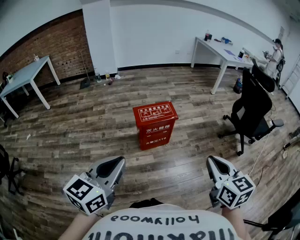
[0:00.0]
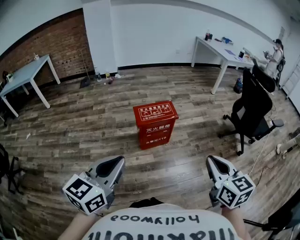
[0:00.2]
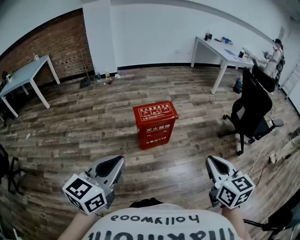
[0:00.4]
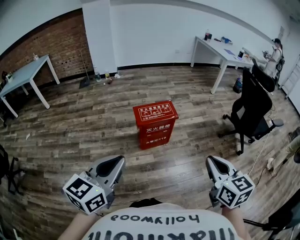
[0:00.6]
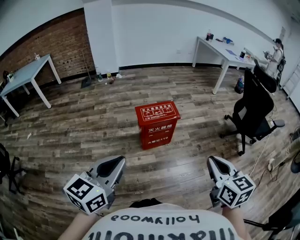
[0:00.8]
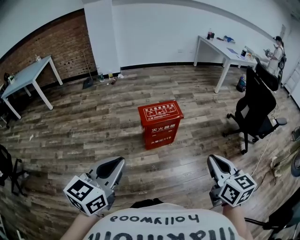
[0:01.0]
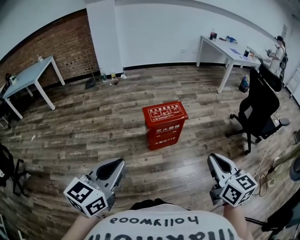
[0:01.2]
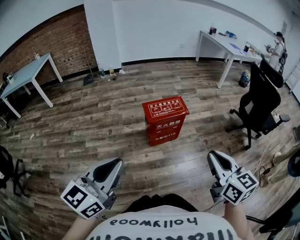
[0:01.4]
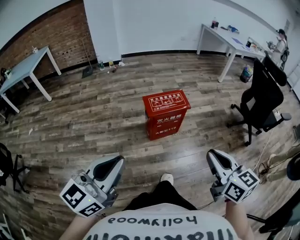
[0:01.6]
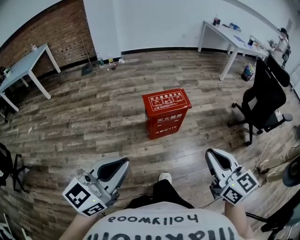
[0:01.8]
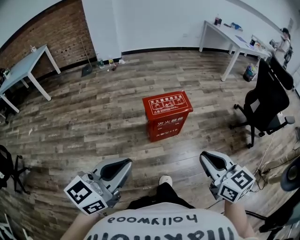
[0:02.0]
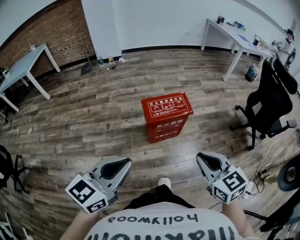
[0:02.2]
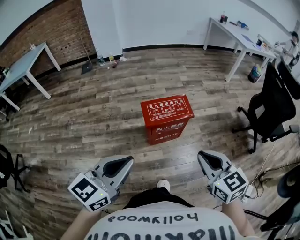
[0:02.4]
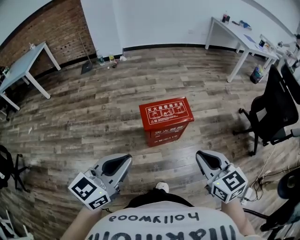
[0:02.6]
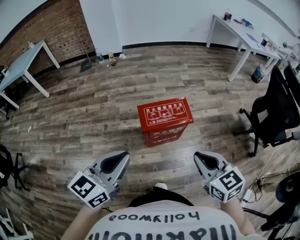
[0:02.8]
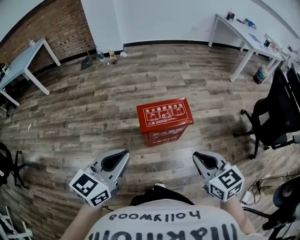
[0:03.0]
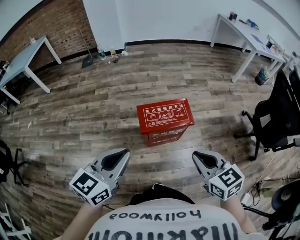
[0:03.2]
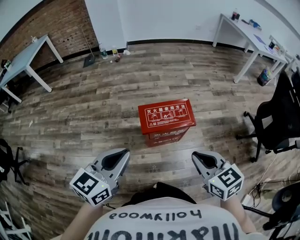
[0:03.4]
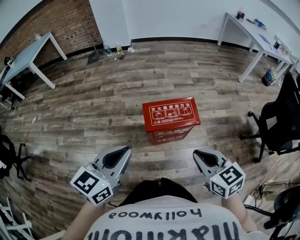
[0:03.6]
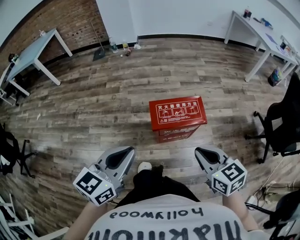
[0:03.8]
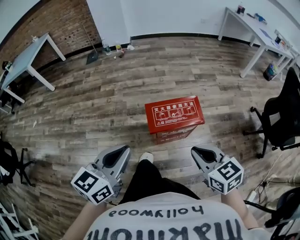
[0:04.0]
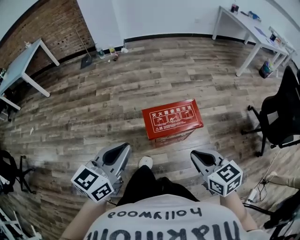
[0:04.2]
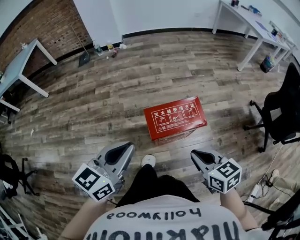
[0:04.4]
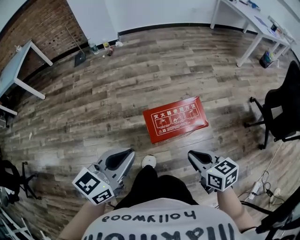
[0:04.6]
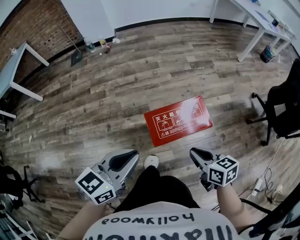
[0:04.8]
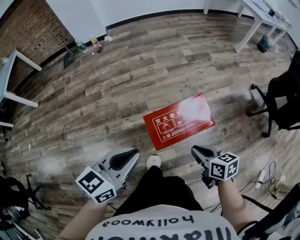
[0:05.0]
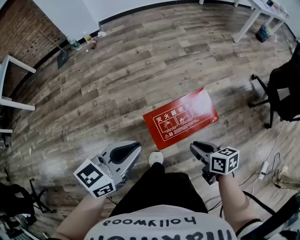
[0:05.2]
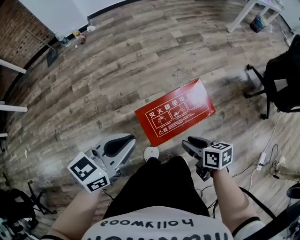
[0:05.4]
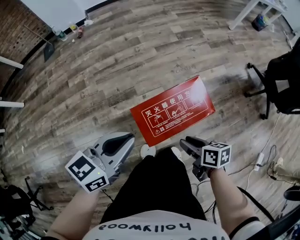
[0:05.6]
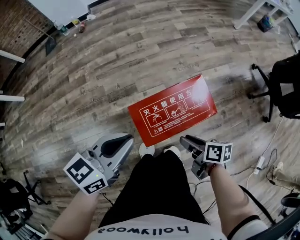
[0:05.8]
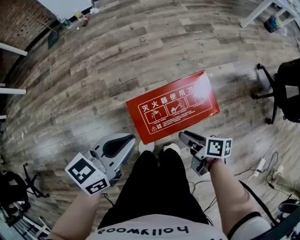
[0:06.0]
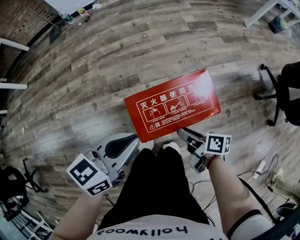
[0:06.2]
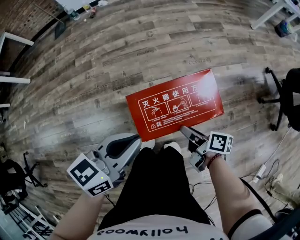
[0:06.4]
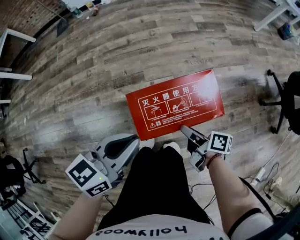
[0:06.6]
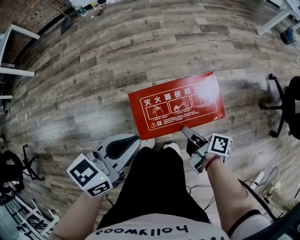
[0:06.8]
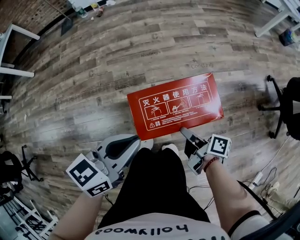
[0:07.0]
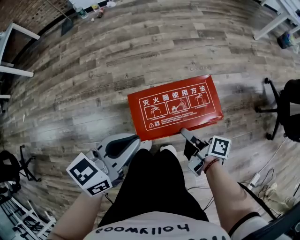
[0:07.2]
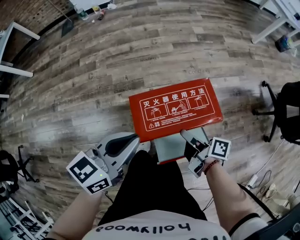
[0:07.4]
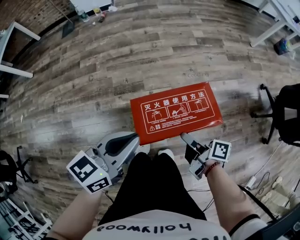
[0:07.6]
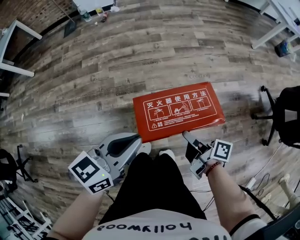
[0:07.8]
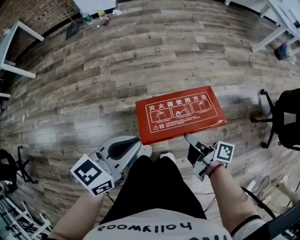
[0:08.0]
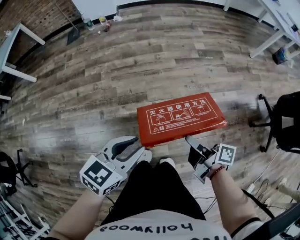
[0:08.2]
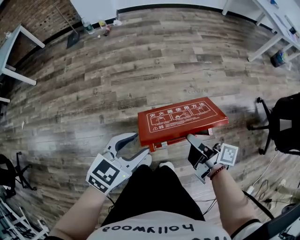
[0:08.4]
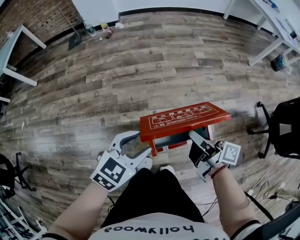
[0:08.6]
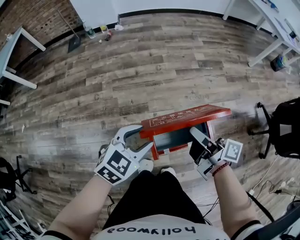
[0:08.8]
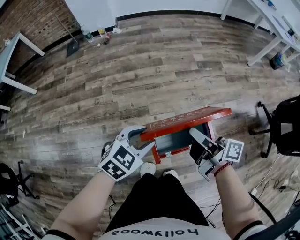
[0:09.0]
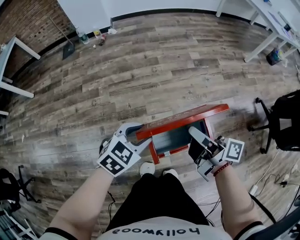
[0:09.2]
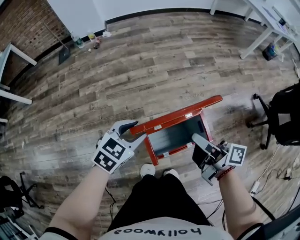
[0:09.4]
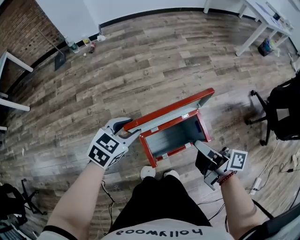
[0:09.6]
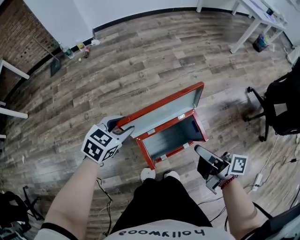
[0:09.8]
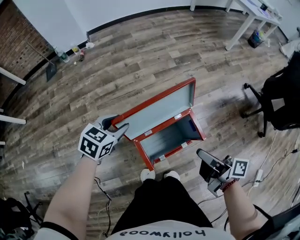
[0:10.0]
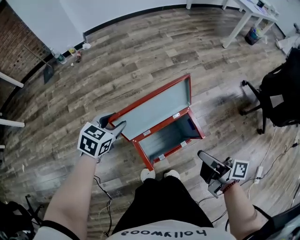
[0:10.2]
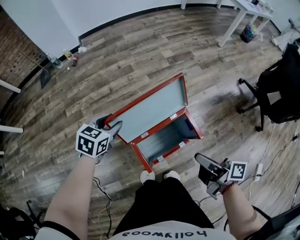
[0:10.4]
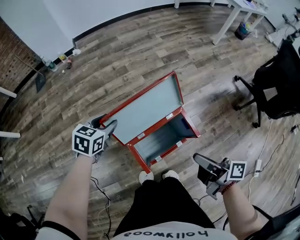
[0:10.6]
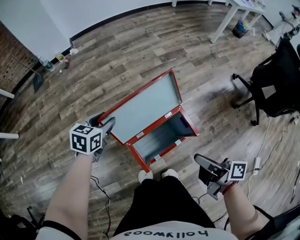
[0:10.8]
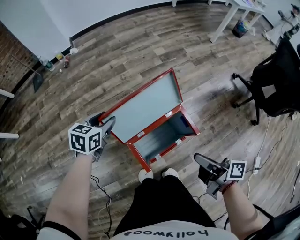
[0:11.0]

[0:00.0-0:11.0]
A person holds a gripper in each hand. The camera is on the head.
0:00.0 to 0:01.6: The two grippers go some 10 cm to the left.
0:01.6 to 0:03.2: The grippers both shift forward by some 25 cm. The right gripper turns by some 20 degrees.
0:03.2 to 0:04.8: The right gripper moves downward and forward, about 20 cm, and turns by some 30 degrees; the left gripper moves forward and downward, roughly 15 cm.
0:04.8 to 0:06.2: The left gripper is displaced downward, forward and to the right by some 15 cm. The right gripper goes some 20 cm downward and forward, rolls clockwise, seen from behind, by some 40 degrees, and opens up.
0:06.2 to 0:07.8: The right gripper is displaced upward by some 5 cm.
0:07.8 to 0:09.4: The right gripper is displaced upward and forward by approximately 20 cm, and rotates roughly 20 degrees. Meanwhile the left gripper goes approximately 15 cm forward and downward, swivels about 30 degrees, and opens.
0:09.4 to 0:11.0: The left gripper heads forward, covering about 10 cm, while the right gripper moves backward and to the right, approximately 10 cm.

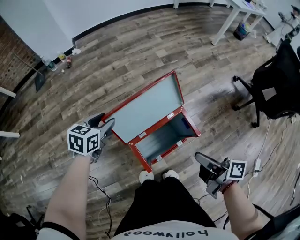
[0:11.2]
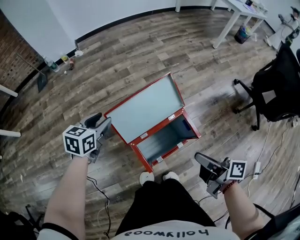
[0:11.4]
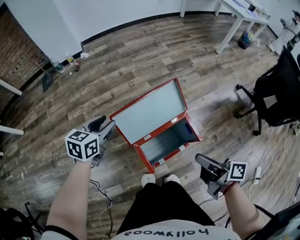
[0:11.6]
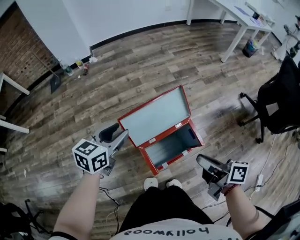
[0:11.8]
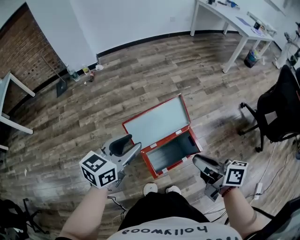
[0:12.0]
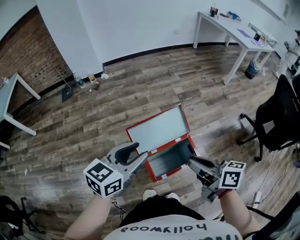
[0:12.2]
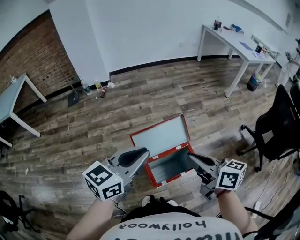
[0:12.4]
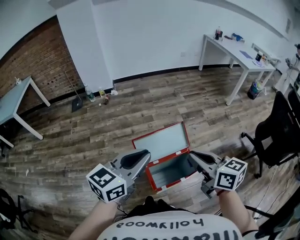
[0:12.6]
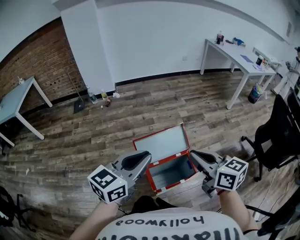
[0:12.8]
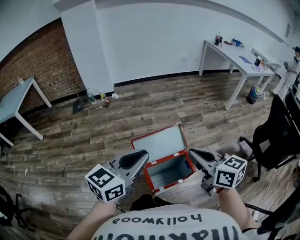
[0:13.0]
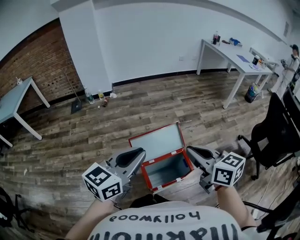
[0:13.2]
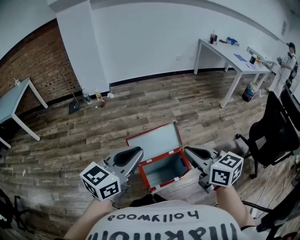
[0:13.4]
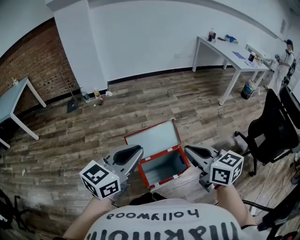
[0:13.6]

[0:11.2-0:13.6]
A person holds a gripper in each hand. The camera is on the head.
0:11.2 to 0:12.4: The left gripper shifts roughly 35 cm upward and backward, tilts its fingers about 30 degrees upward, and closes. The right gripper travels upward by approximately 20 cm, and twists approximately 40 degrees counterclockwise, seen from behind.
0:12.4 to 0:13.6: The left gripper shifts by roughly 5 cm; the right gripper heads upward, covering roughly 5 cm, and swivels some 20 degrees.

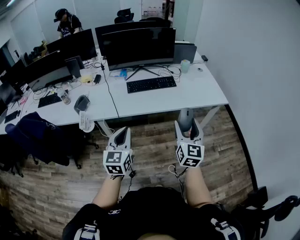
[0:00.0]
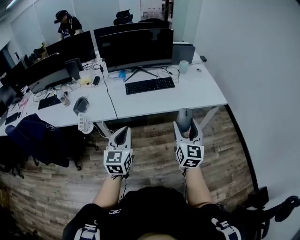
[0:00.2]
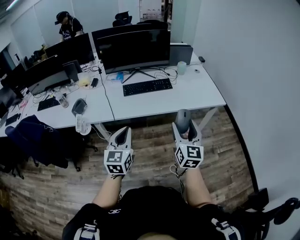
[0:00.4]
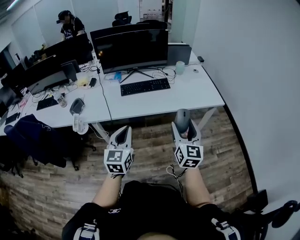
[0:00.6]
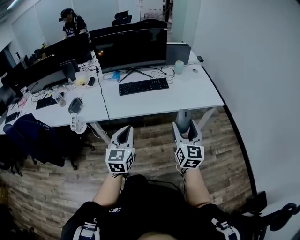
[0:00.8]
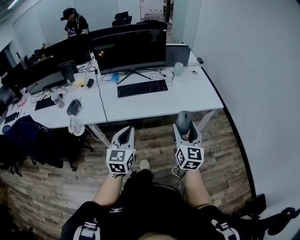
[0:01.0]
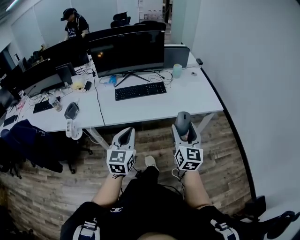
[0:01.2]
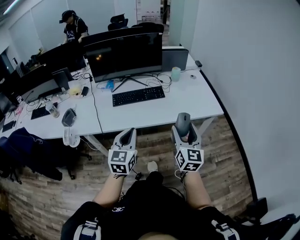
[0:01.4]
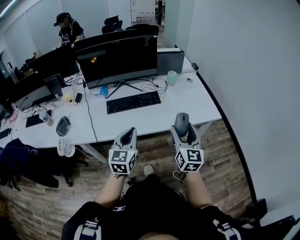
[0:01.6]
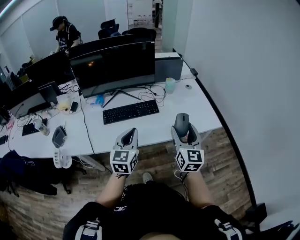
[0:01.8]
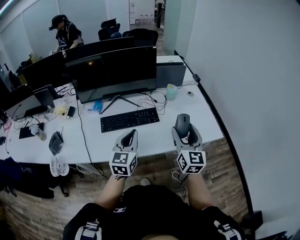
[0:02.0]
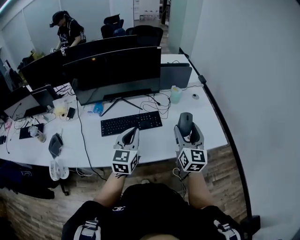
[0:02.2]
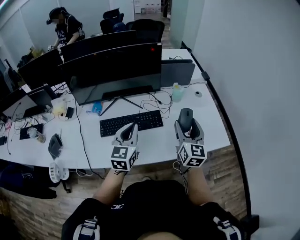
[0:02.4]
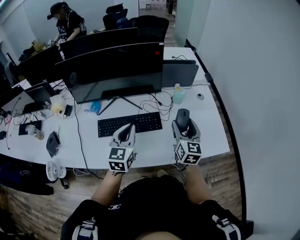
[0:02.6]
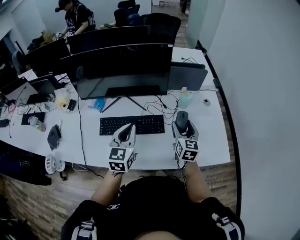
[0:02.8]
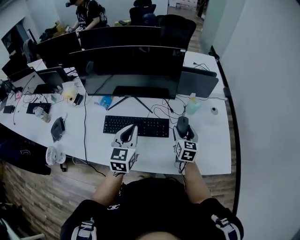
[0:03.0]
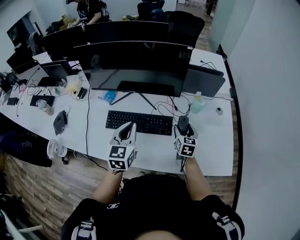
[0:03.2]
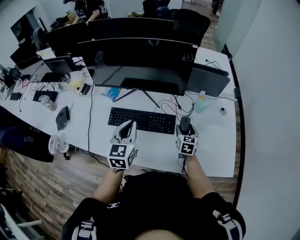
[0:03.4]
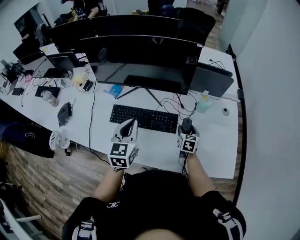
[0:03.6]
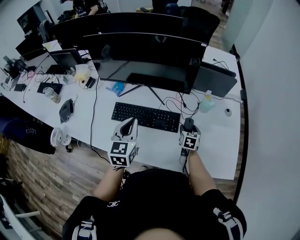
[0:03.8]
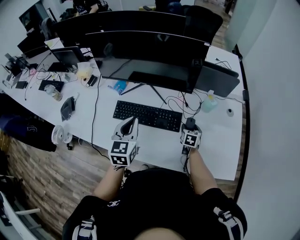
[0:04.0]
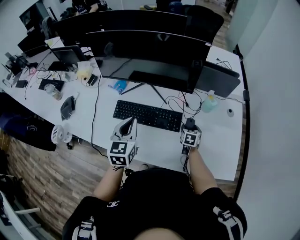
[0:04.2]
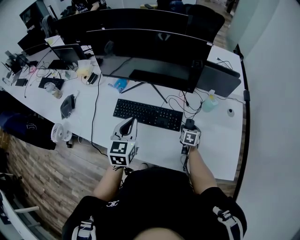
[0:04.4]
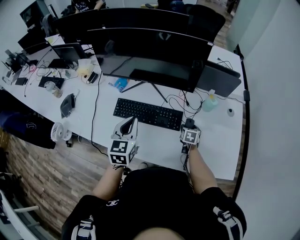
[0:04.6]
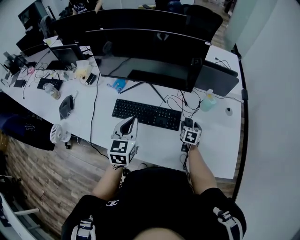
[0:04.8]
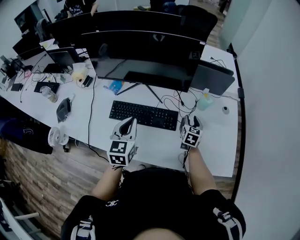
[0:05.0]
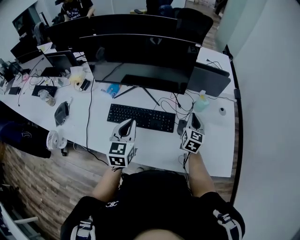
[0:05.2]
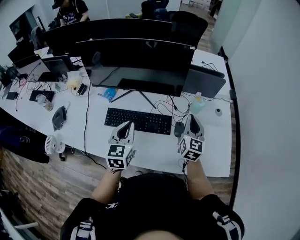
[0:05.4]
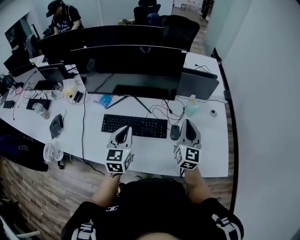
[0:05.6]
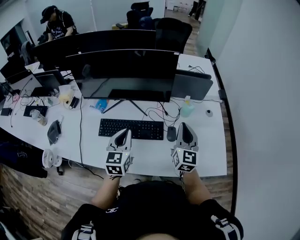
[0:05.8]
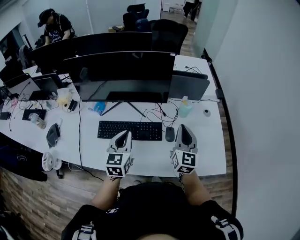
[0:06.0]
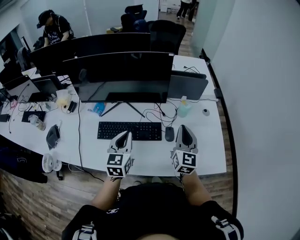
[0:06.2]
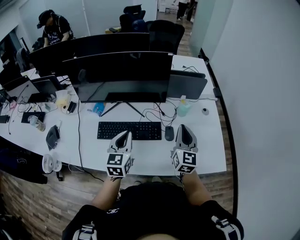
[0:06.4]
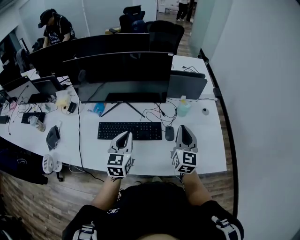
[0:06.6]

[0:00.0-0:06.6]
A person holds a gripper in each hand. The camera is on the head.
0:00.0 to 0:01.6: The grippers both shift forward and to the right by about 25 cm.
0:01.6 to 0:03.2: Both grippers travel together forward, roughly 40 cm. The left gripper changes its angle by roughly 20 degrees, while the right gripper changes its angle by some 30 degrees.
0:03.2 to 0:05.0: The right gripper reaches about 15 cm downward, then returns.
0:05.0 to 0:06.6: The right gripper goes some 25 cm upward and backward, rotates about 30 degrees, and closes.

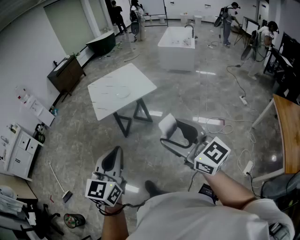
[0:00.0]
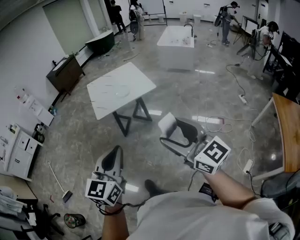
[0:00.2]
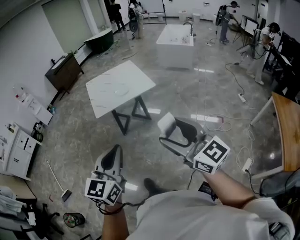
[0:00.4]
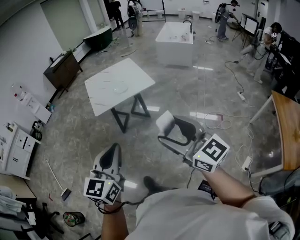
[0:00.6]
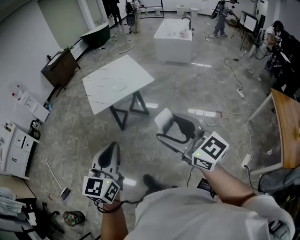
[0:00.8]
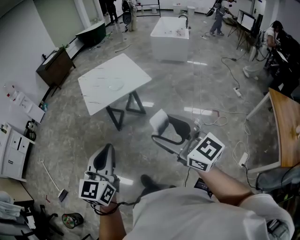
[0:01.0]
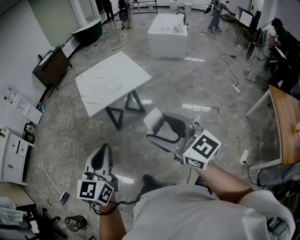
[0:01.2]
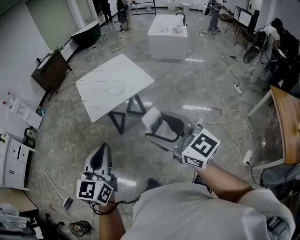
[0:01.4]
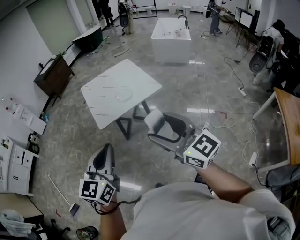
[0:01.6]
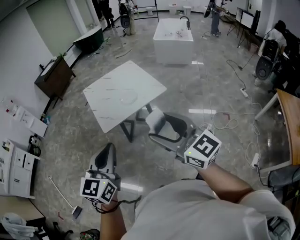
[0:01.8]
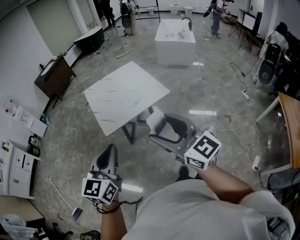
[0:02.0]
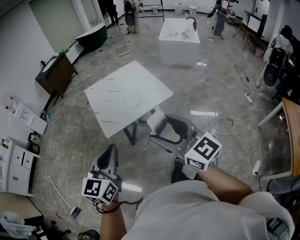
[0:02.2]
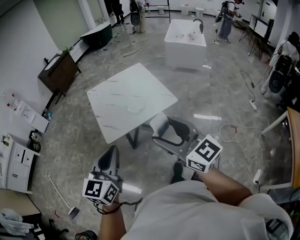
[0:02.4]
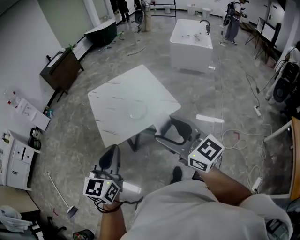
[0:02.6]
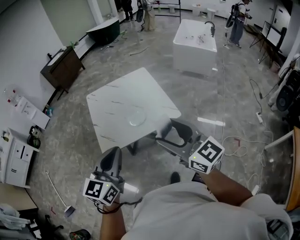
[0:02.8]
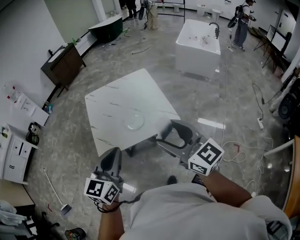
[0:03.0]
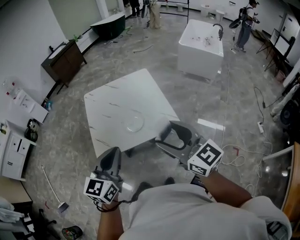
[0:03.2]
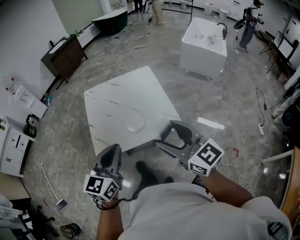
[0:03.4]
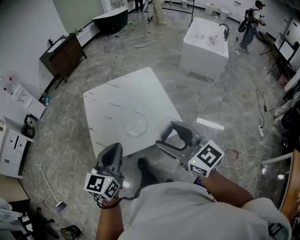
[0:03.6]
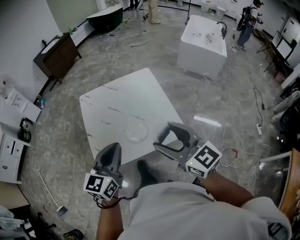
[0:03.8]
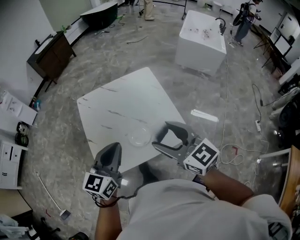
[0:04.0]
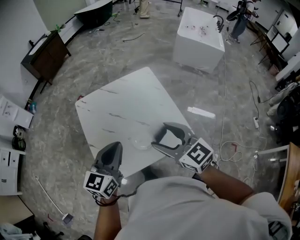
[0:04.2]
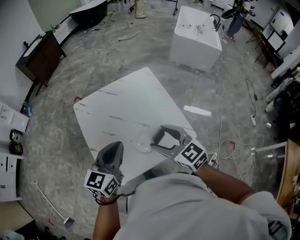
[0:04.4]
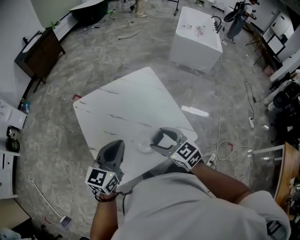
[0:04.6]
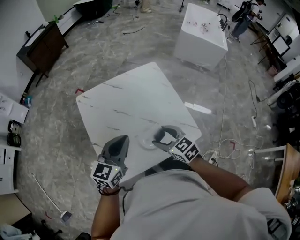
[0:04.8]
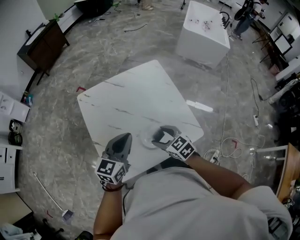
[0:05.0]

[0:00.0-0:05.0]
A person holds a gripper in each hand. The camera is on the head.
0:00.0 to 0:01.6: The two grippers go approximately 25 cm forward and to the left.
0:01.6 to 0:03.4: Both grippers are carried forward, about 50 cm.
0:03.4 to 0:05.0: The left gripper is displaced forward and downward by approximately 35 cm. The right gripper goes some 50 cm forward, downward and to the left, and tips its fingers downward by roughly 40 degrees.
